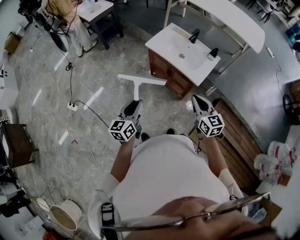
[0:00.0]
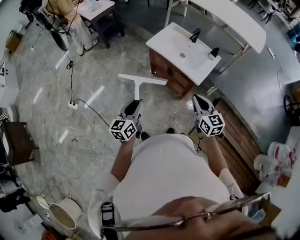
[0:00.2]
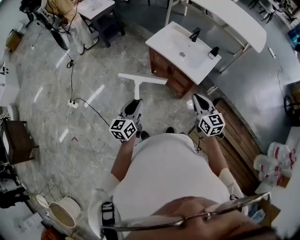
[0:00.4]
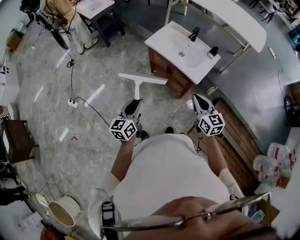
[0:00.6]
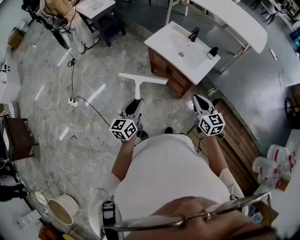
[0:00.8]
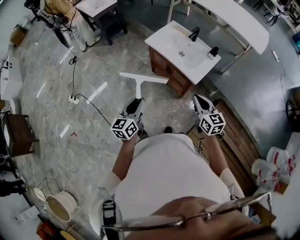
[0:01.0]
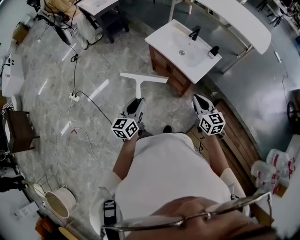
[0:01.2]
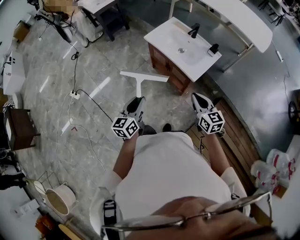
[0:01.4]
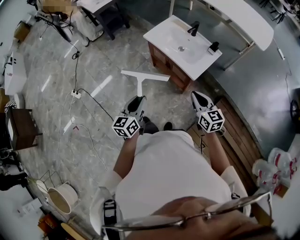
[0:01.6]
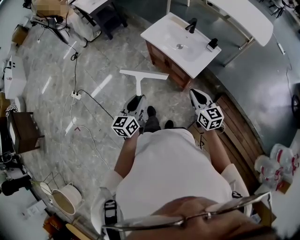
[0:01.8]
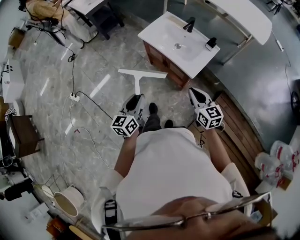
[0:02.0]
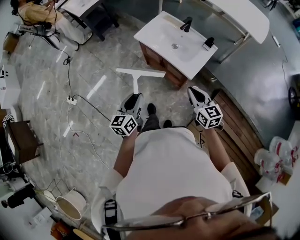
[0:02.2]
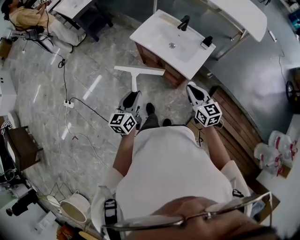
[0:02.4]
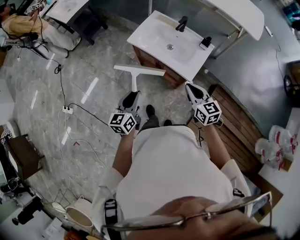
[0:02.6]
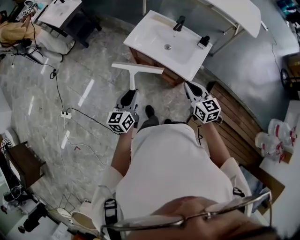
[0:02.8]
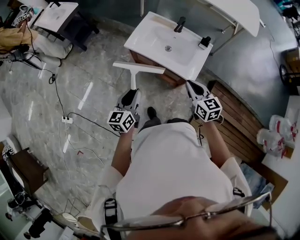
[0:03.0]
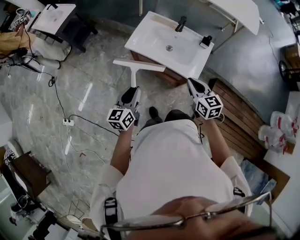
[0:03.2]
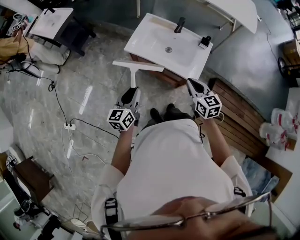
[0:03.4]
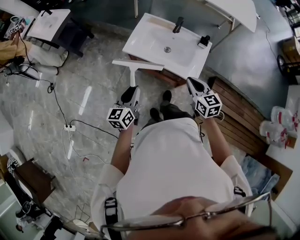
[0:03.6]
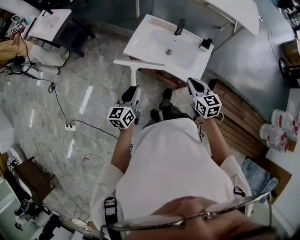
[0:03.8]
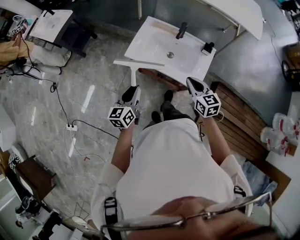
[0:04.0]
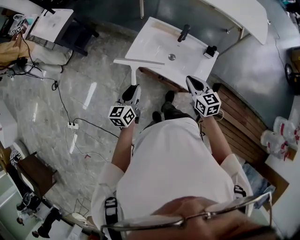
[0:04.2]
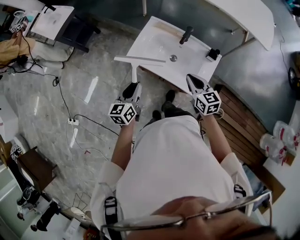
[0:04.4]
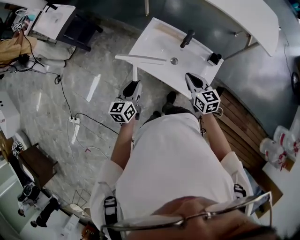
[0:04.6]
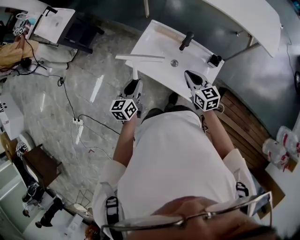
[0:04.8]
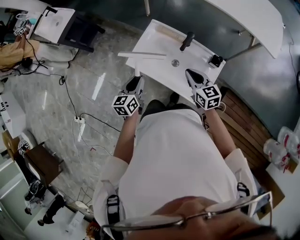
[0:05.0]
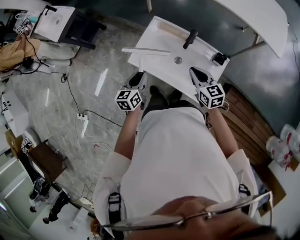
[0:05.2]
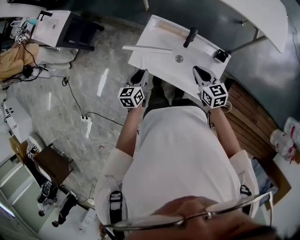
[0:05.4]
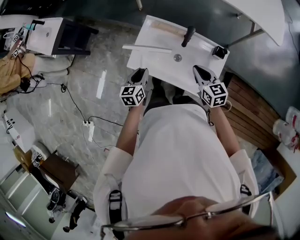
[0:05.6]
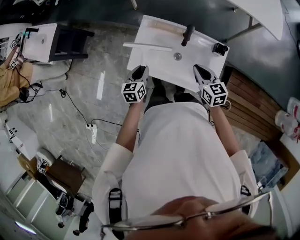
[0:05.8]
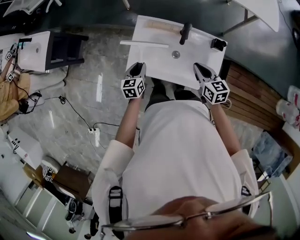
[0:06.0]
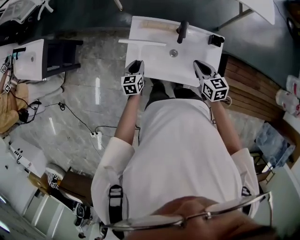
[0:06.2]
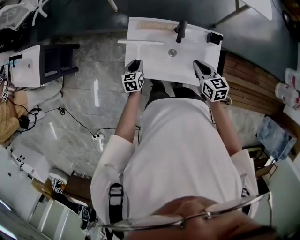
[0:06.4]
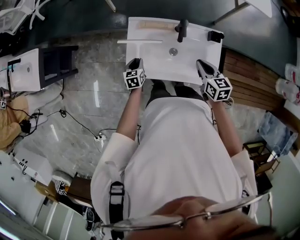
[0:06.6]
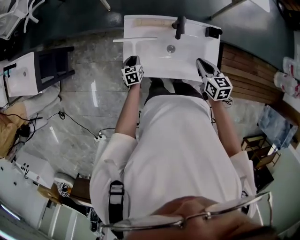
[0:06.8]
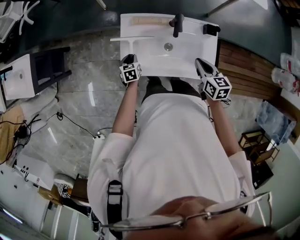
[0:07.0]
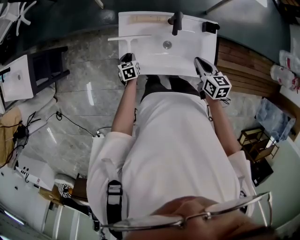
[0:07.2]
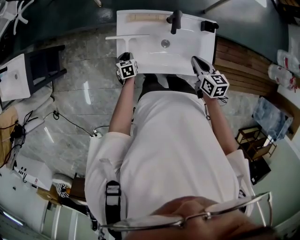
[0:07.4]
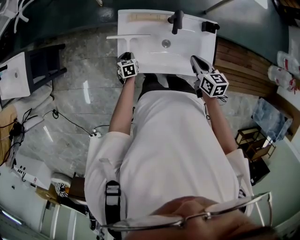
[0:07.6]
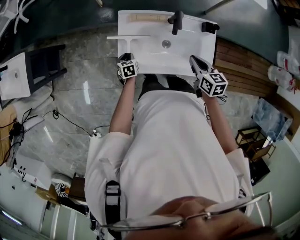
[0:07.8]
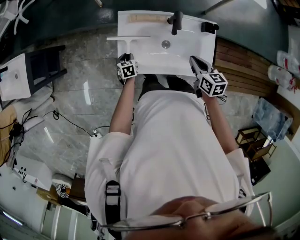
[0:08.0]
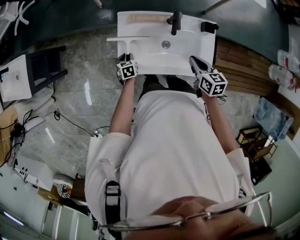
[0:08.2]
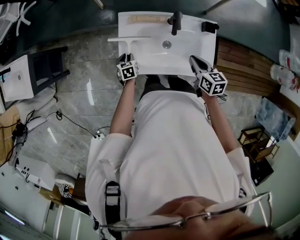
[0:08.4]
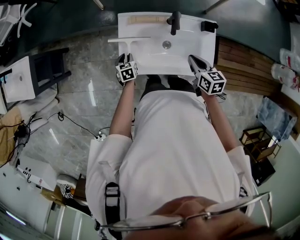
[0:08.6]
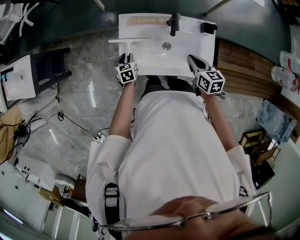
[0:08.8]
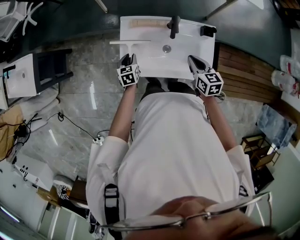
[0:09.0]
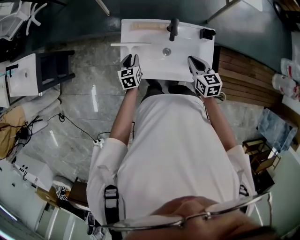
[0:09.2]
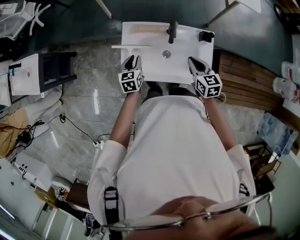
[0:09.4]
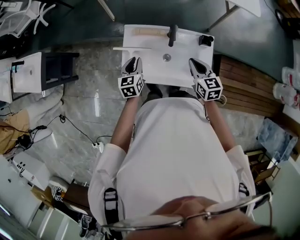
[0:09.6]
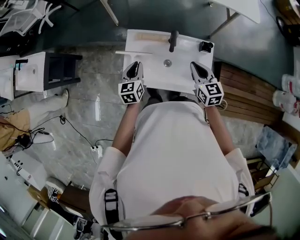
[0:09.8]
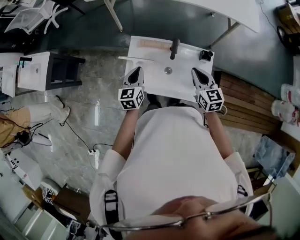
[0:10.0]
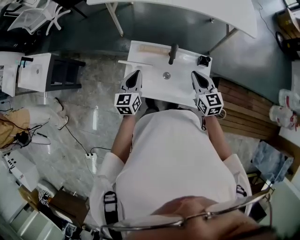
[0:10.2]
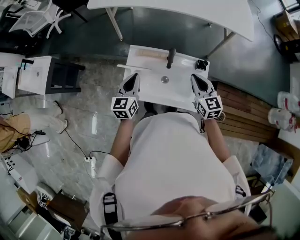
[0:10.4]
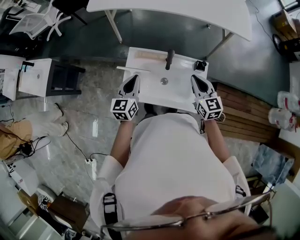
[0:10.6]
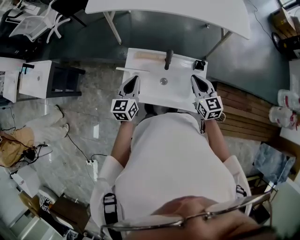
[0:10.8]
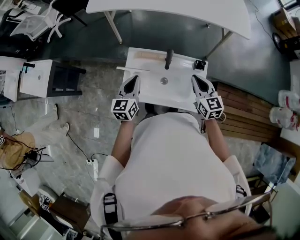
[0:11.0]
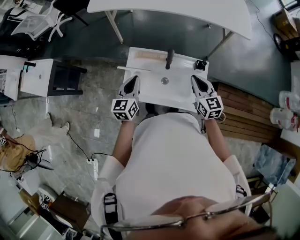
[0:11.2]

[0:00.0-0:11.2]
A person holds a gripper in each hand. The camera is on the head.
0:00.0 to 0:01.6: The two grippers go roughly 10 cm to the right.
0:01.6 to 0:03.2: The two grippers go approximately 20 cm forward.
0:03.2 to 0:04.8: The grippers both shift forward by about 20 cm.
0:04.8 to 0:06.4: The left gripper shifts approximately 25 cm downward and forward, and rotates roughly 30 degrees, while the right gripper shifts by roughly 5 cm, and swivels roughly 30 degrees.
0:06.4 to 0:08.0: The left gripper heads downward, covering approximately 10 cm.
0:08.0 to 0:09.6: The left gripper shifts about 20 cm upward, and swivels about 30 degrees; the right gripper heads upward, covering about 5 cm.
0:09.6 to 0:11.2: The right gripper travels upward by about 10 cm. The left gripper goes approximately 15 cm upward.

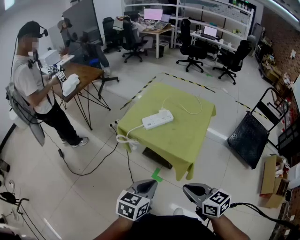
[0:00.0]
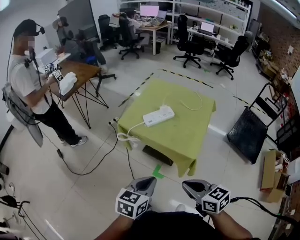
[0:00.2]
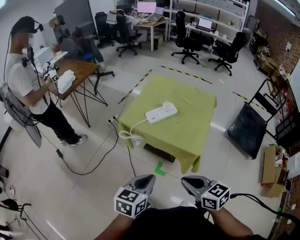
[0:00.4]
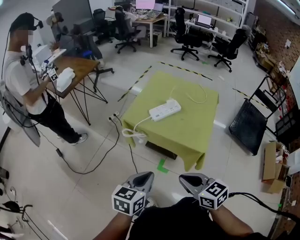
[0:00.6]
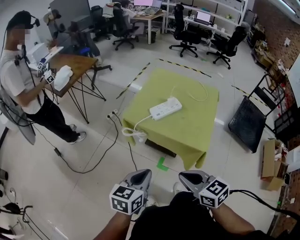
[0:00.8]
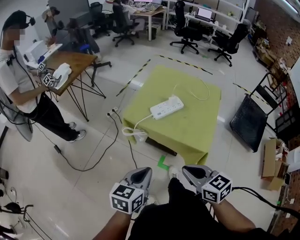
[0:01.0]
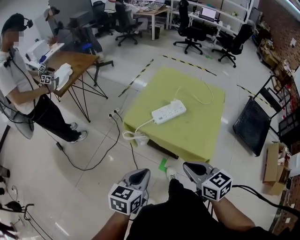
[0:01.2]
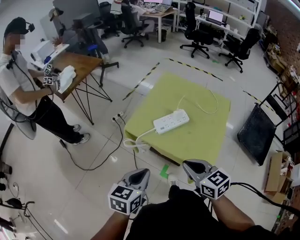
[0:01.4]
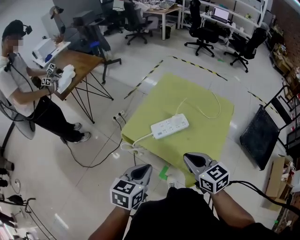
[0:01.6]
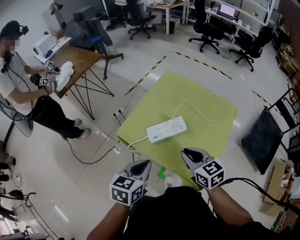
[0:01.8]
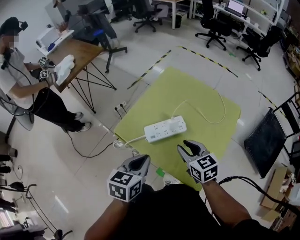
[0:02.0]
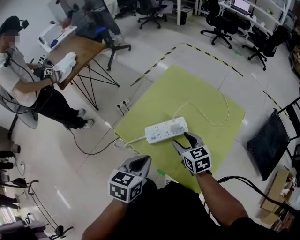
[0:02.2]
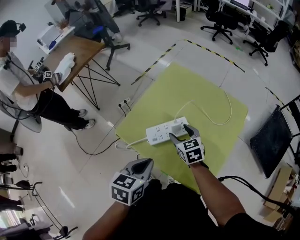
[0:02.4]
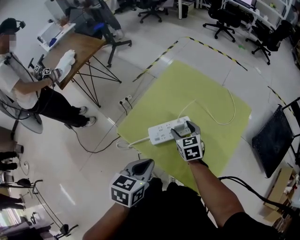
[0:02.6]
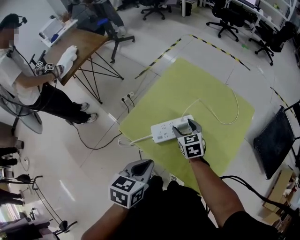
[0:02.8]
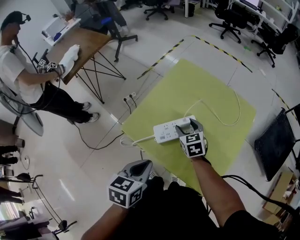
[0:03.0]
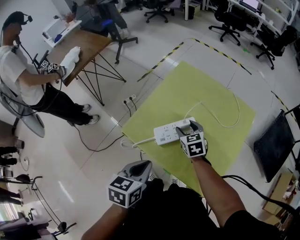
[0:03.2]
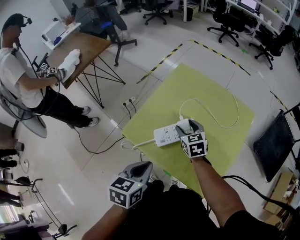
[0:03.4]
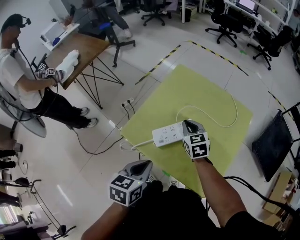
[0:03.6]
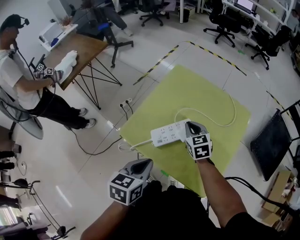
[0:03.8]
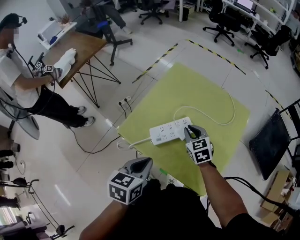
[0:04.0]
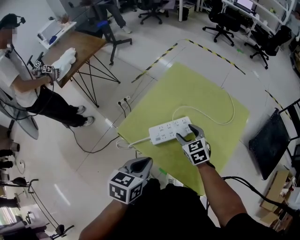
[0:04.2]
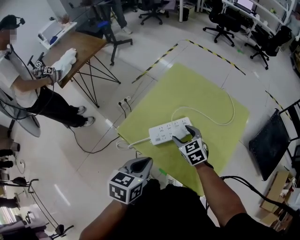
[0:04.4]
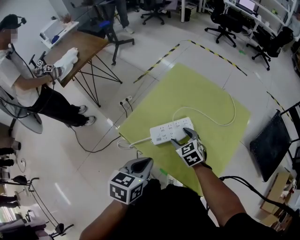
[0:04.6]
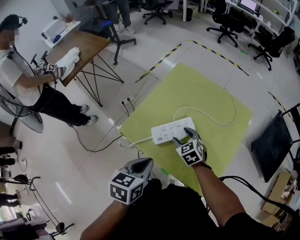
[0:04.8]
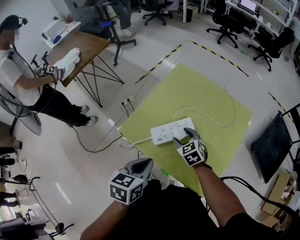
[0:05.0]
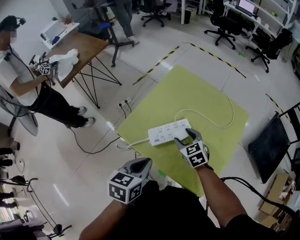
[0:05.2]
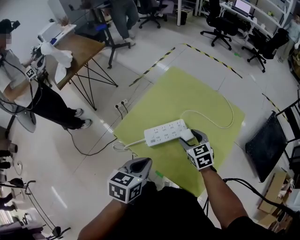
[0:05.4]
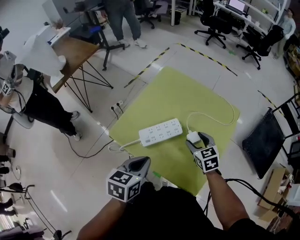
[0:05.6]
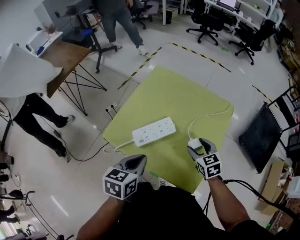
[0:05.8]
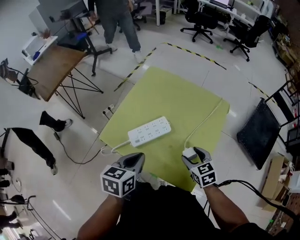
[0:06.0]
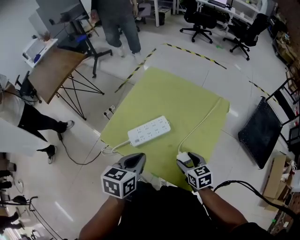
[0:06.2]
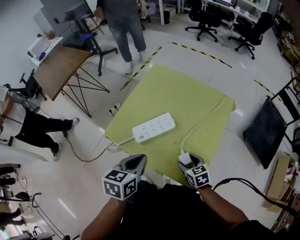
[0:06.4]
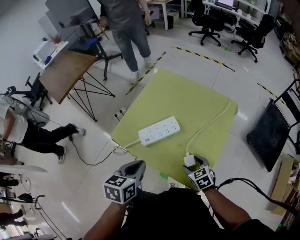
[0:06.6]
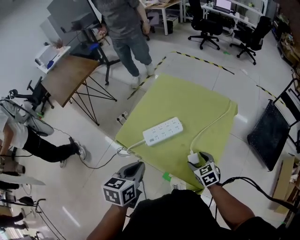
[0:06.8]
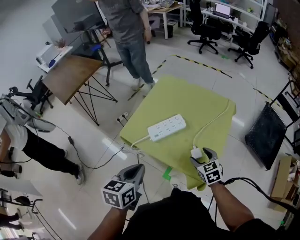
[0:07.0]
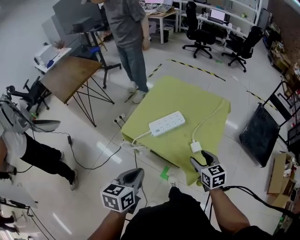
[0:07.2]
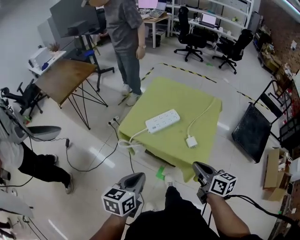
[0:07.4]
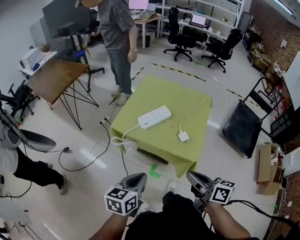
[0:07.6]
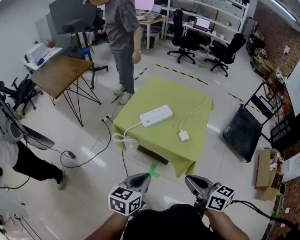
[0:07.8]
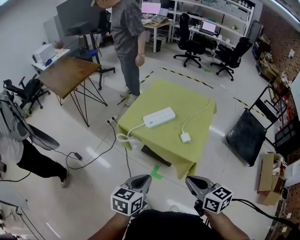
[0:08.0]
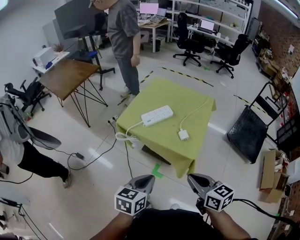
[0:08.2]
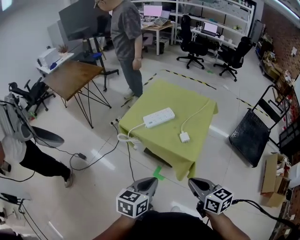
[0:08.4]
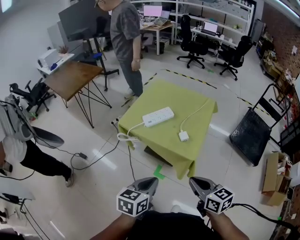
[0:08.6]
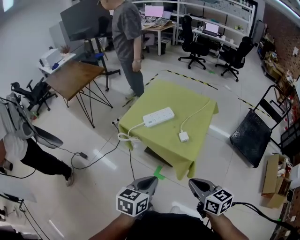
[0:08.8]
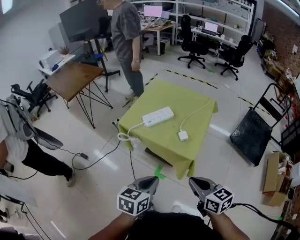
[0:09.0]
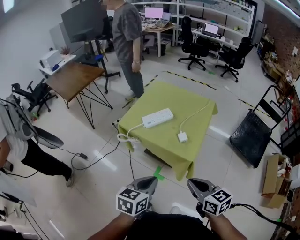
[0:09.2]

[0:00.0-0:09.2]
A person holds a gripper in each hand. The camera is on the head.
0:00.0 to 0:01.6: The two grippers go about 25 cm forward.
0:01.6 to 0:03.0: The left gripper is displaced forward by about 10 cm. Meanwhile the right gripper goes about 30 cm forward and downward, and opens up.
0:03.0 to 0:04.6: The right gripper closes and opens again.
0:04.6 to 0:06.2: The right gripper is displaced to the right and backward by roughly 20 cm, and changes its angle by some 30 degrees. The left gripper travels to the right by approximately 5 cm.
0:06.2 to 0:07.6: The left gripper goes roughly 25 cm backward and to the left. The right gripper moves backward and upward, some 35 cm, changes its angle by some 40 degrees, and closes up.
0:07.6 to 0:09.2: The left gripper goes about 10 cm to the right and backward. The right gripper is displaced backward and to the right by some 10 cm, and rotates approximately 30 degrees.

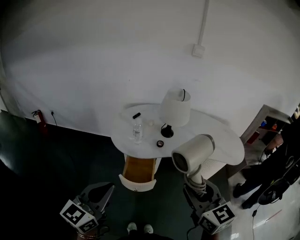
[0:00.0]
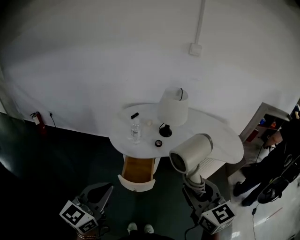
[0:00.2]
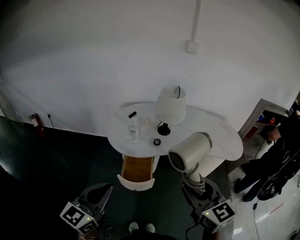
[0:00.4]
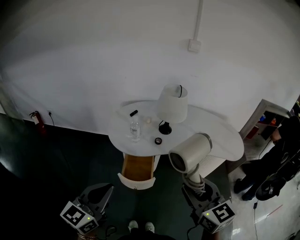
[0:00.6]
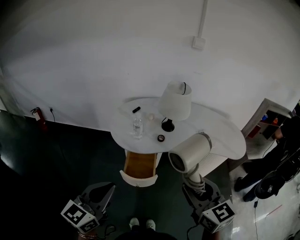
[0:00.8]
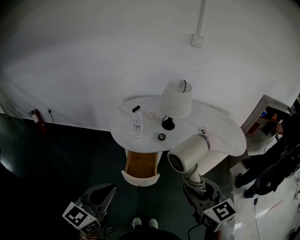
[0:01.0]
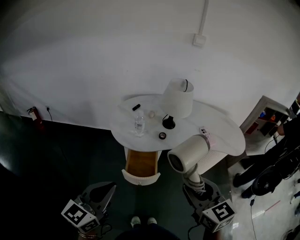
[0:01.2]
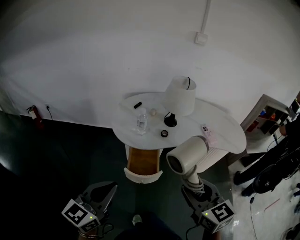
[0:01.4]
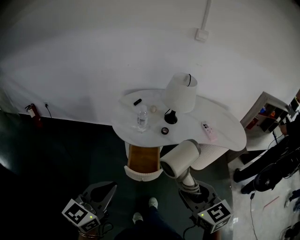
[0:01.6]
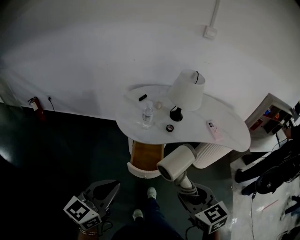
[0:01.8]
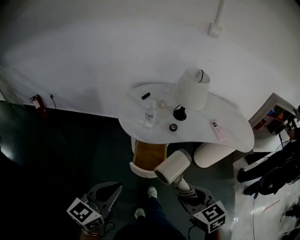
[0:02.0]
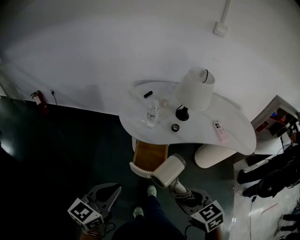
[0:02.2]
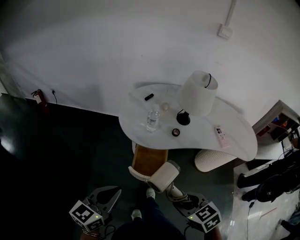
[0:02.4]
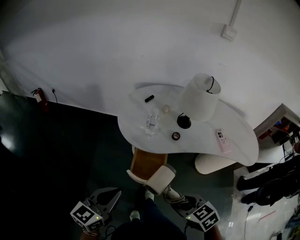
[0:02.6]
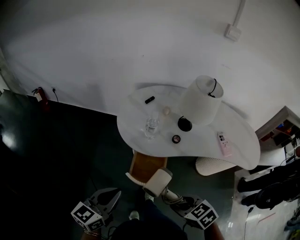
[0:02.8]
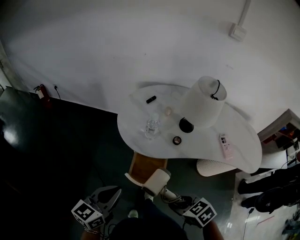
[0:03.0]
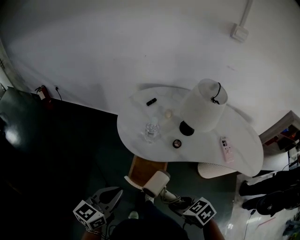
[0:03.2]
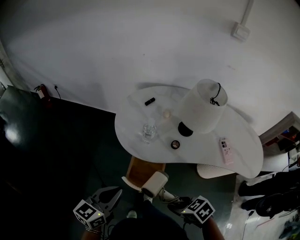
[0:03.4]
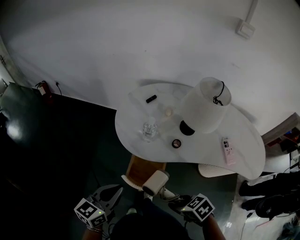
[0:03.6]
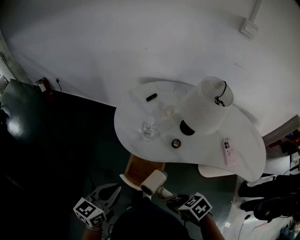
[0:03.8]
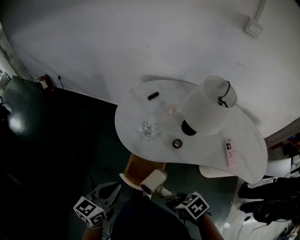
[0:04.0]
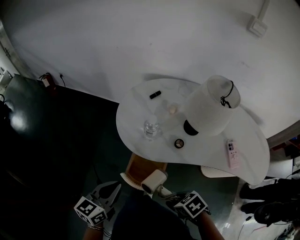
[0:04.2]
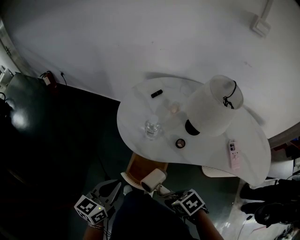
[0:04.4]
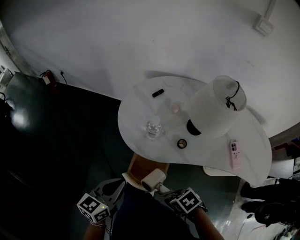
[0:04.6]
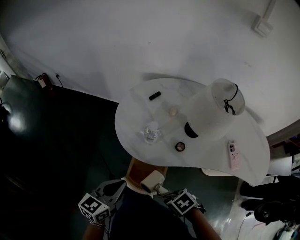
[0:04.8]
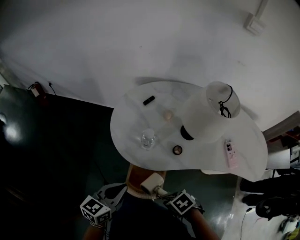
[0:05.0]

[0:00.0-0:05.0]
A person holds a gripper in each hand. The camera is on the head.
0:00.0 to 0:01.6: The right gripper goes roughly 10 cm downward and to the left; the left gripper changes place by about 5 cm.
0:01.6 to 0:03.4: The right gripper is displaced downward by some 20 cm, and tips its fingers downward by approximately 30 degrees, while the left gripper moves about 15 cm.
0:03.4 to 0:05.0: The left gripper changes place by some 10 cm, while the right gripper heads downward, covering about 5 cm, and changes its angle by roughly 20 degrees.
